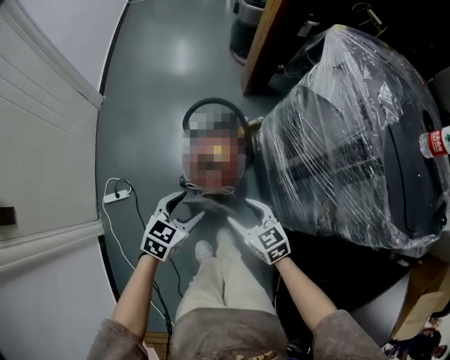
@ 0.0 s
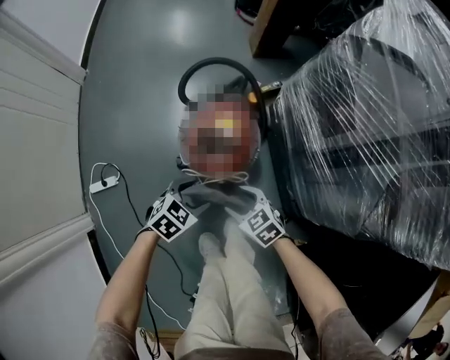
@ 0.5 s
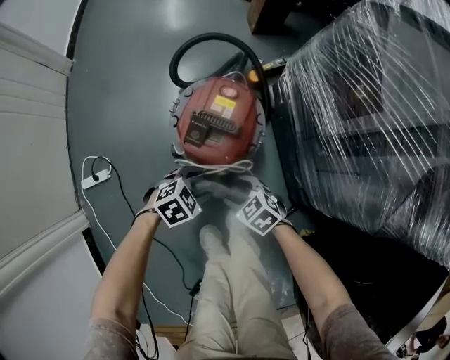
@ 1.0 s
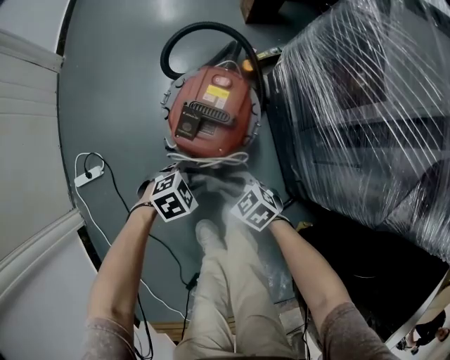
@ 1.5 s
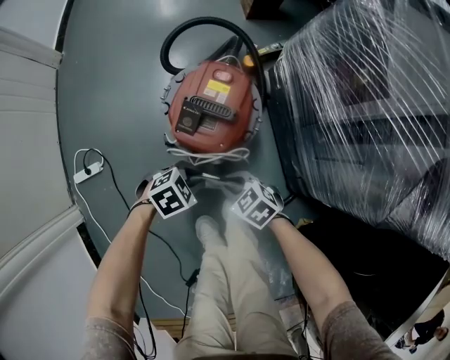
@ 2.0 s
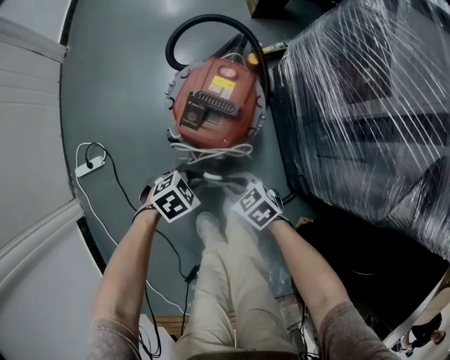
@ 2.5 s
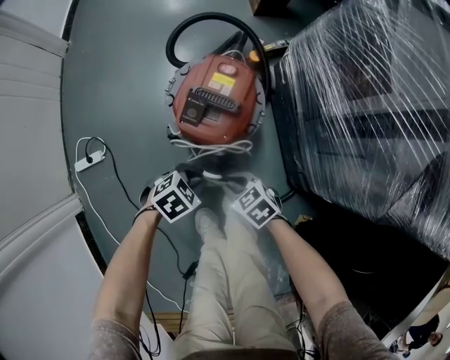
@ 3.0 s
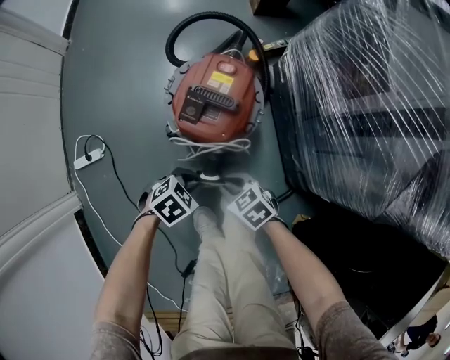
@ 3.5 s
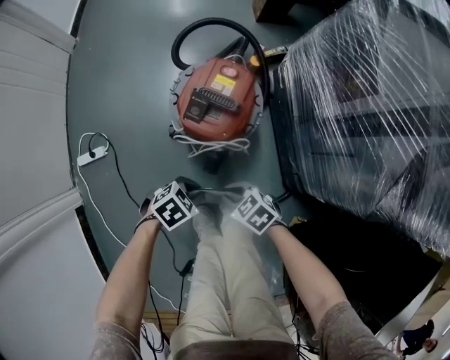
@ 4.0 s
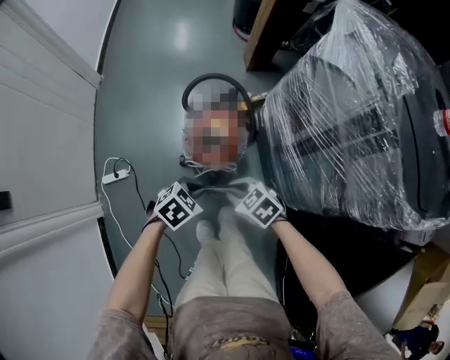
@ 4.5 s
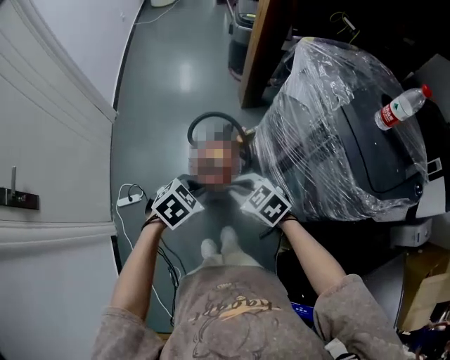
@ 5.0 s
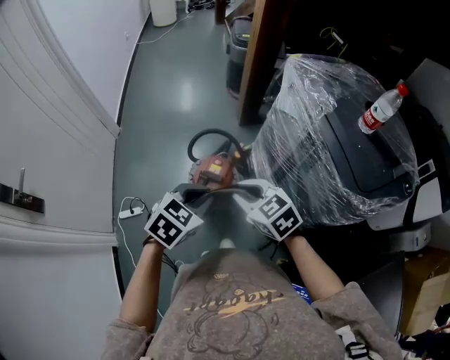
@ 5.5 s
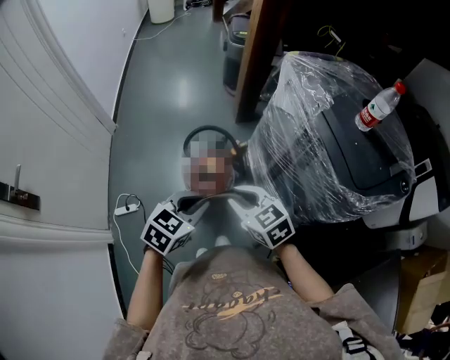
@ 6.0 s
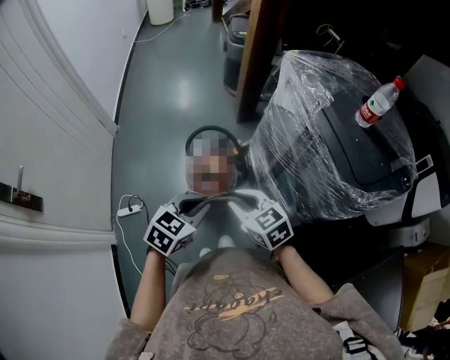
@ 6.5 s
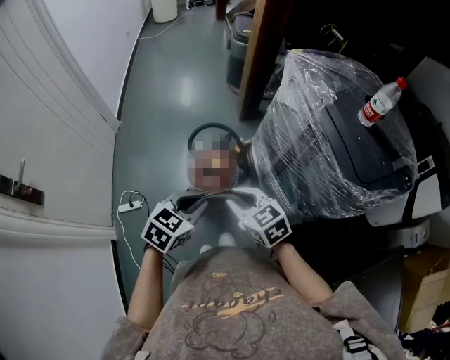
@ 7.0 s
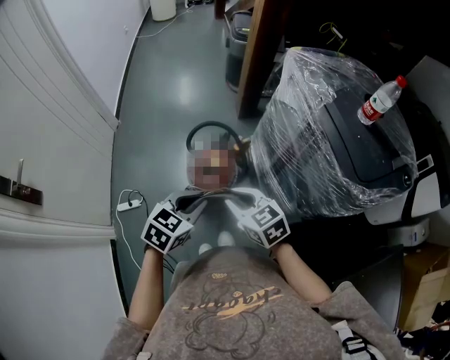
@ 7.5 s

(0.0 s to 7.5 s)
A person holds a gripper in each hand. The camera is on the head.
0.0 s - 2.0 s: Both grippers travel together downward, approximately 35 cm. The left gripper swivels approximately 40 degrees, and closes. The right gripper swivels roughly 30 degrees, and closes up.
2.0 s - 4.0 s: The right gripper shifts by roughly 5 cm; the left gripper shifts by approximately 10 cm.
4.0 s - 5.5 s: Both grippers move upward, about 60 cm. The right gripper changes its angle by roughly 30 degrees. The left gripper changes its angle by about 30 degrees.
5.5 s - 7.5 s: The right gripper shifts by some 5 cm. The left gripper moves roughly 5 cm.

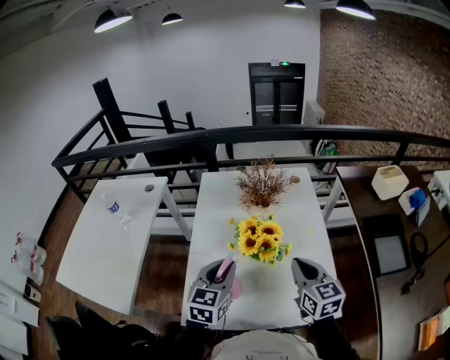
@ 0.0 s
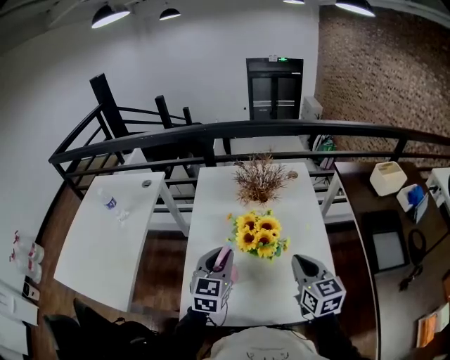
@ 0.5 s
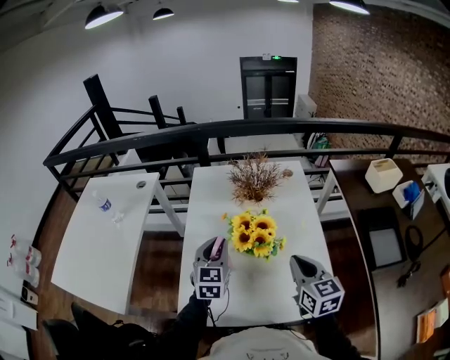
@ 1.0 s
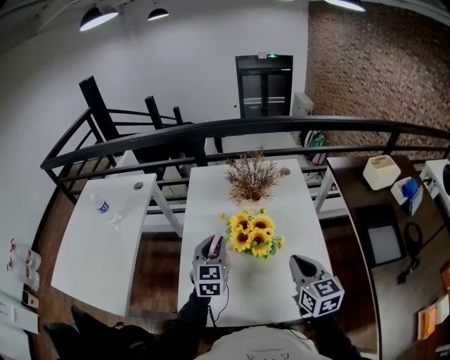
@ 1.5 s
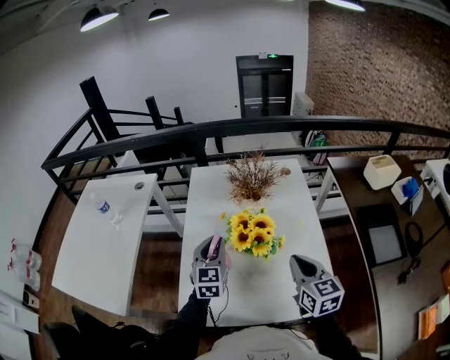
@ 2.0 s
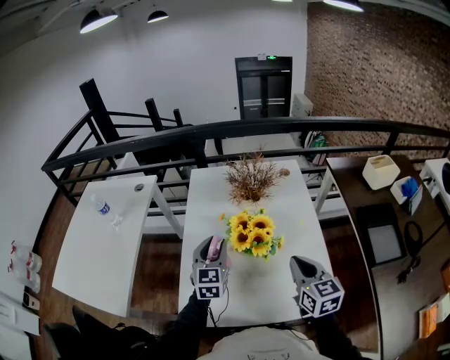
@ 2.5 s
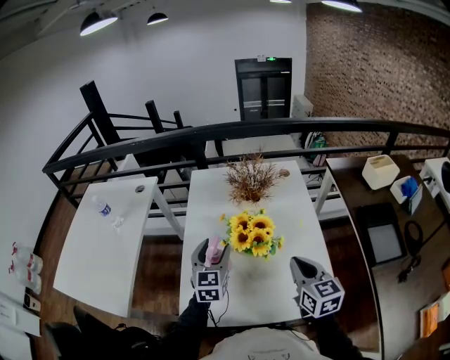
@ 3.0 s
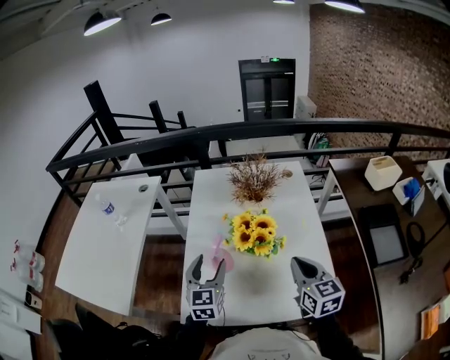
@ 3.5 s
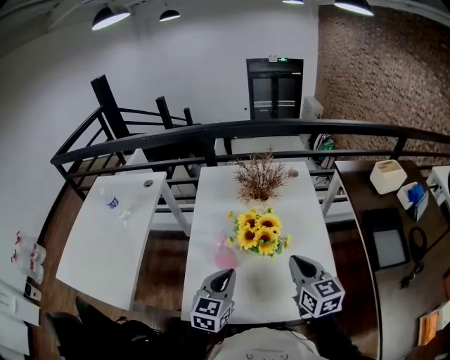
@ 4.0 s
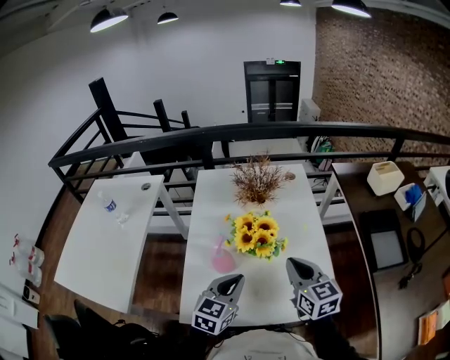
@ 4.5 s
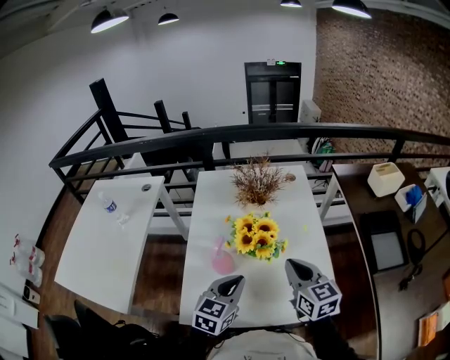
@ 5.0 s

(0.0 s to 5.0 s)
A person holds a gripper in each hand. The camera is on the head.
0.0 s - 2.5 s: The left gripper heads forward, covering some 10 cm.
2.5 s - 5.0 s: The left gripper goes roughly 15 cm backward and to the right, swivels about 30 degrees, and closes up.

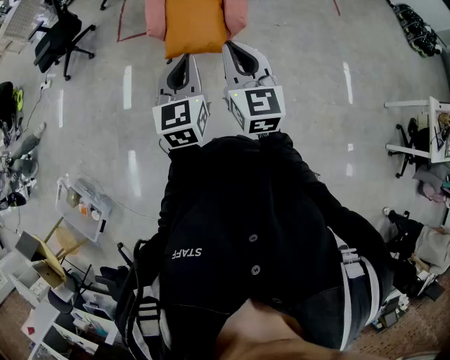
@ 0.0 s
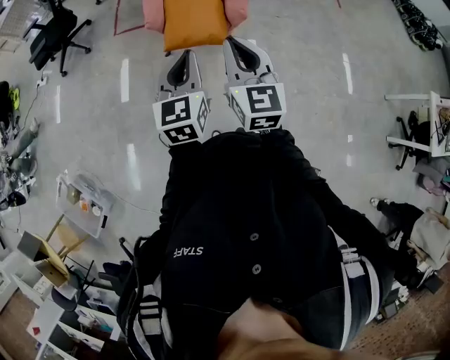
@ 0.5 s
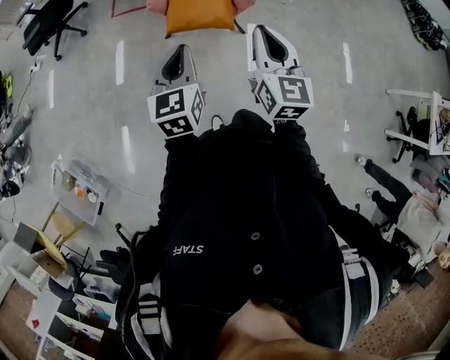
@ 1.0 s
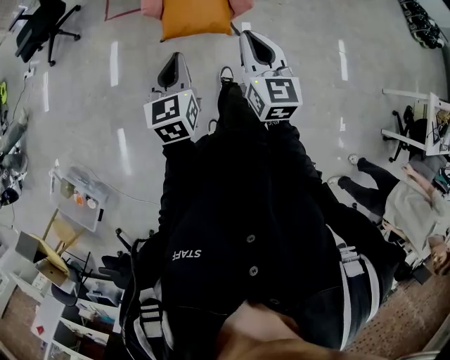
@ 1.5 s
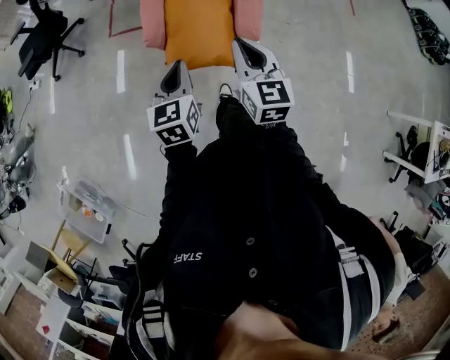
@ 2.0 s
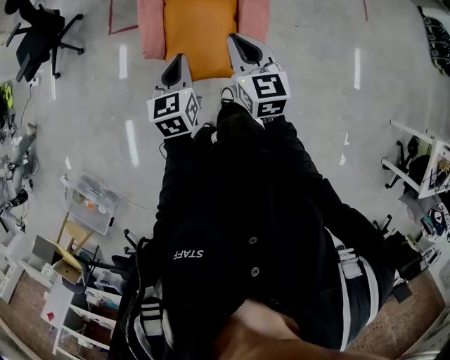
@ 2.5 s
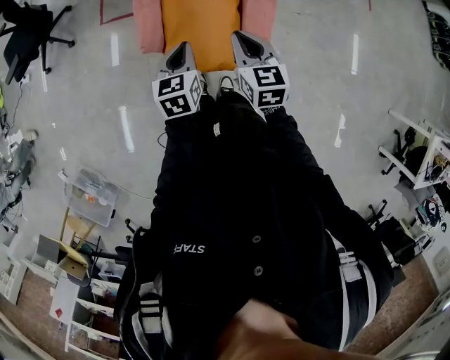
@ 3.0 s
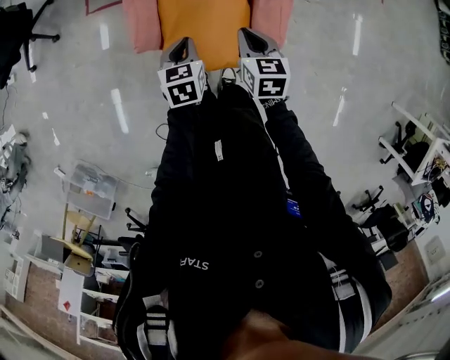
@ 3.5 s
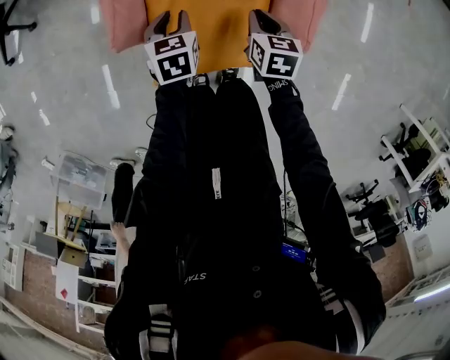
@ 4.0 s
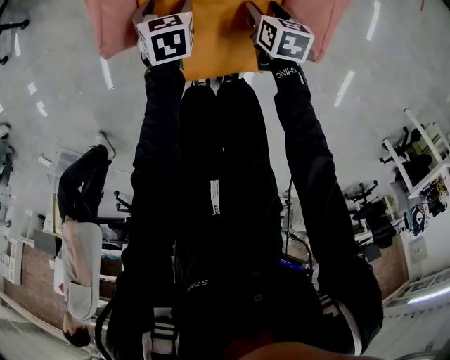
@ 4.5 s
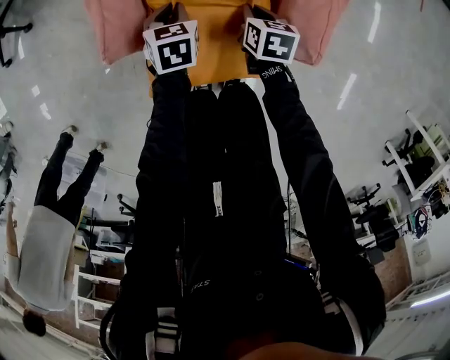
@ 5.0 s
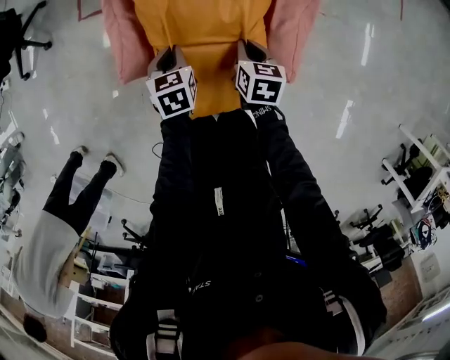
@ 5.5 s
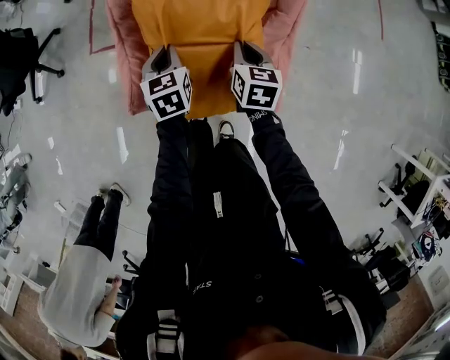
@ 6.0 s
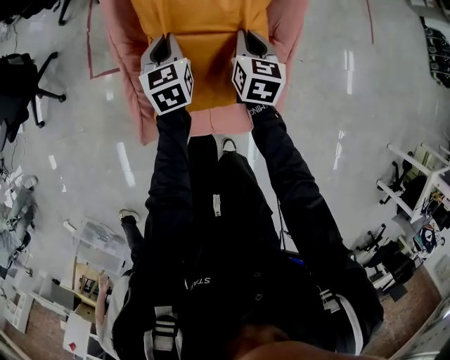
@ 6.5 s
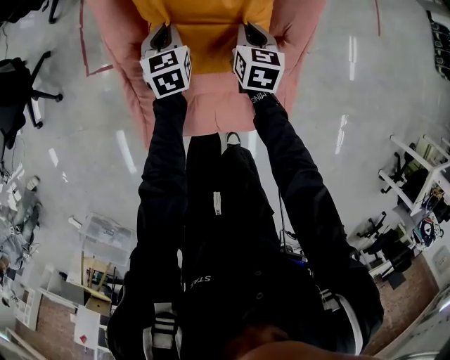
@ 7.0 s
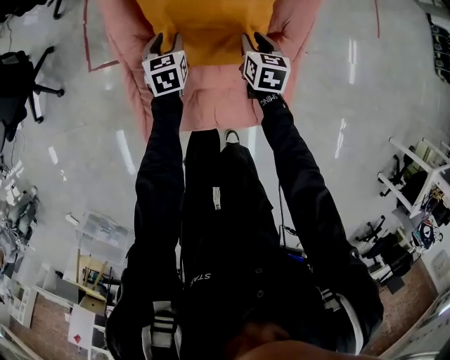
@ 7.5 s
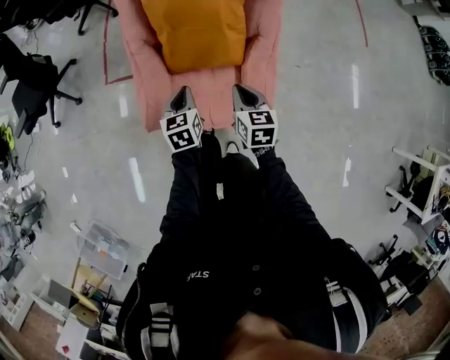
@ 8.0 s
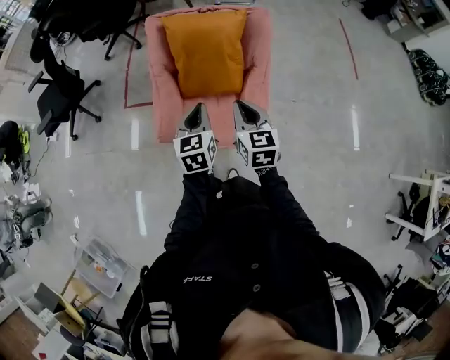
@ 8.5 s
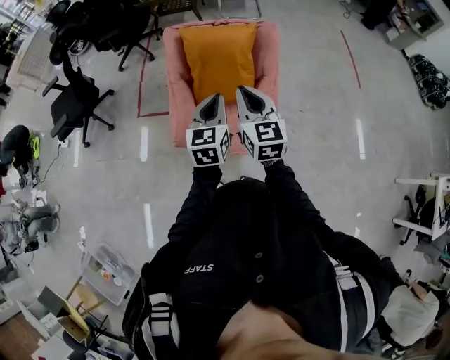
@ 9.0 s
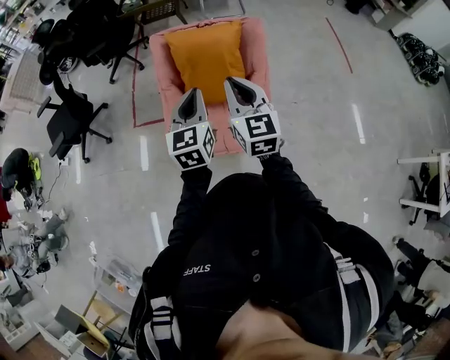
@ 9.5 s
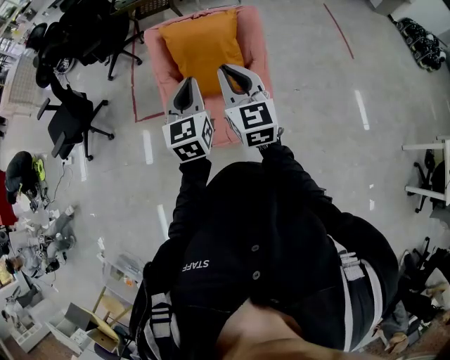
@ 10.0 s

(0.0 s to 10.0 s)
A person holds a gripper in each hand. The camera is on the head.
0.0 s - 2.0 s: Both grippers move forward, approximately 35 cm.
2.0 s - 4.0 s: Both grippers are carried forward, some 50 cm. Both grippers move downward, some 60 cm. The right gripper points its fingers about 40 degrees further downward. Meanwhile the left gripper tilts its fingers approximately 30 degrees downward.
4.0 s - 6.0 s: Both grippers move upward and forward, roughly 25 cm. The right gripper opens and closes again. Meanwhile the left gripper opens, then closes once more.
6.0 s - 8.0 s: The grippers both shift upward by some 15 cm. The right gripper travels forward and back again, about 25 cm each way, and opens and closes again; the left gripper goes forward and returns, some 25 cm each way, and opens and closes again.
8.0 s - 10.0 s: Both grippers move upward, some 40 cm. The right gripper rotates some 30 degrees. Meanwhile the left gripper rotates approximately 30 degrees.

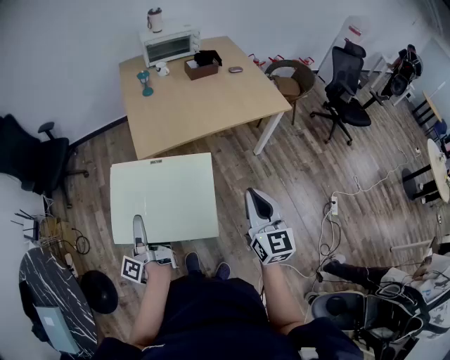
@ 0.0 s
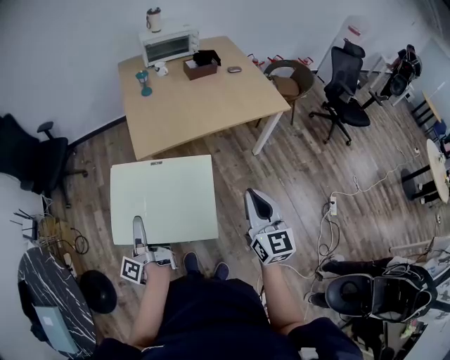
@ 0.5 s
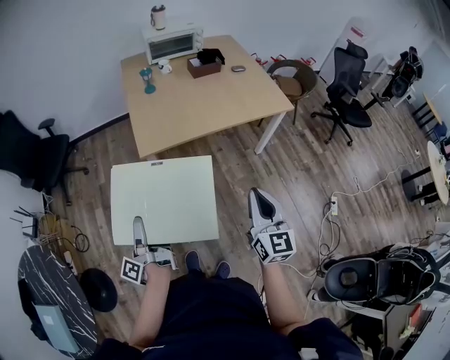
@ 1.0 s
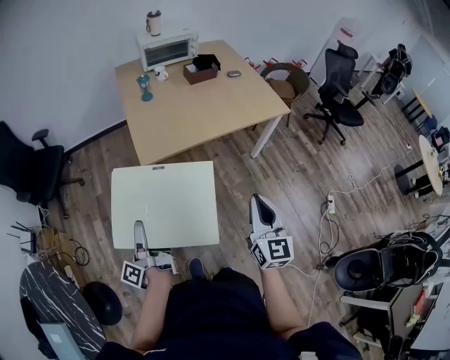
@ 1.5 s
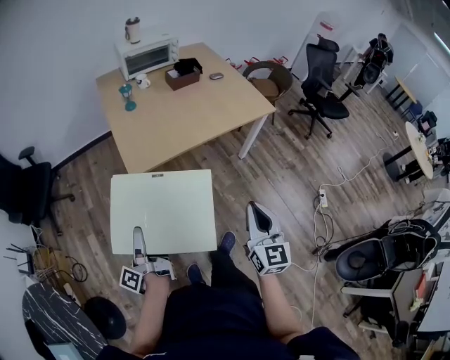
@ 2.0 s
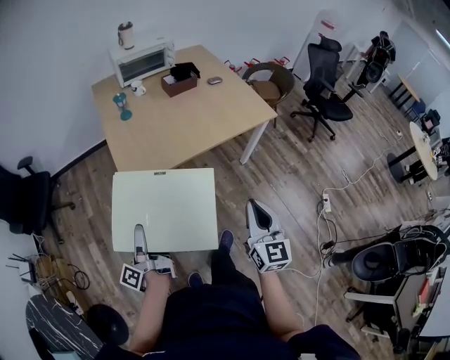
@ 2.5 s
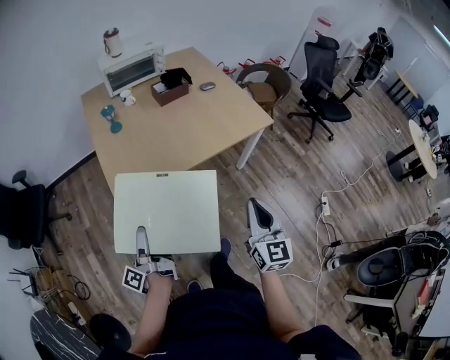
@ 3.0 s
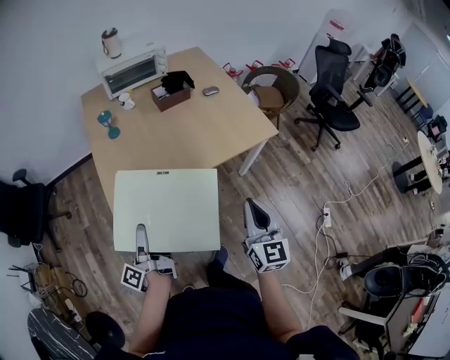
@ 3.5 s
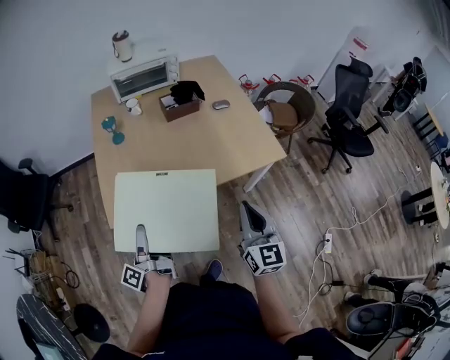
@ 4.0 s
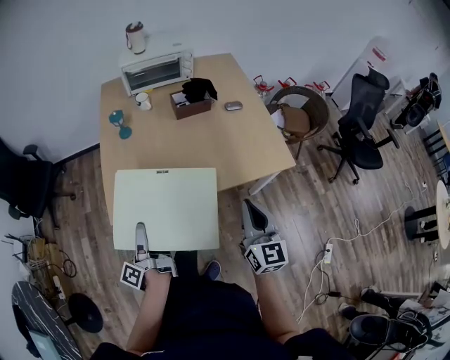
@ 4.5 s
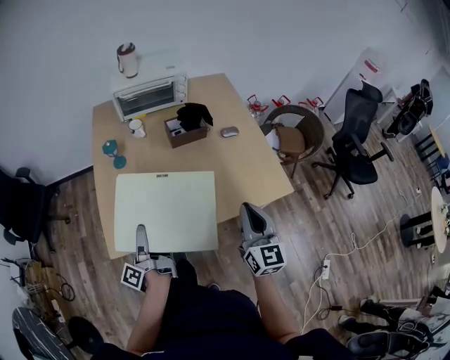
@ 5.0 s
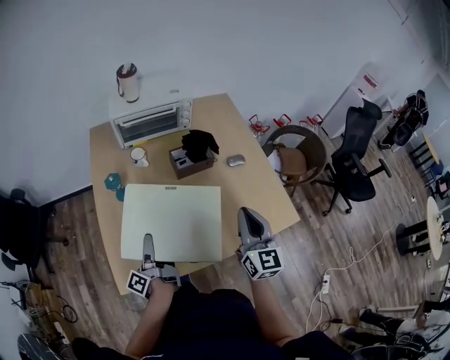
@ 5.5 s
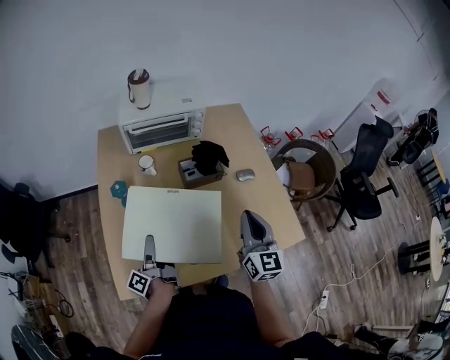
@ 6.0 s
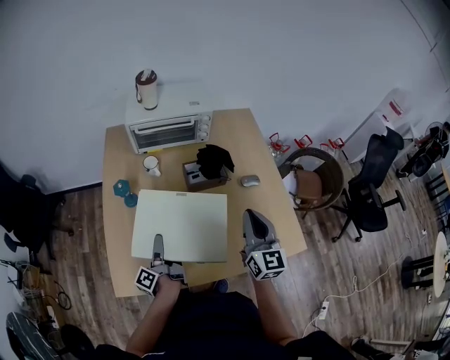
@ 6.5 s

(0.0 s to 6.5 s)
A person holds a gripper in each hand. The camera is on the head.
2.0 s - 4.5 s: The right gripper changes place by roughly 40 cm.
4.5 s - 6.5 s: The right gripper changes place by about 35 cm.
